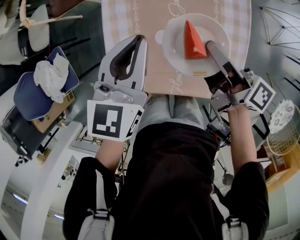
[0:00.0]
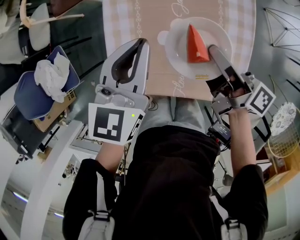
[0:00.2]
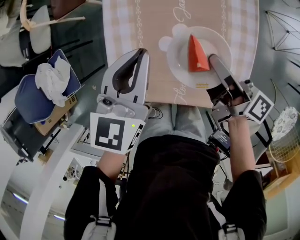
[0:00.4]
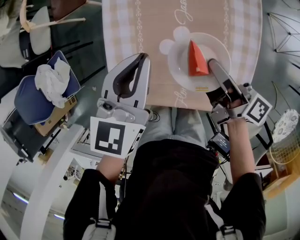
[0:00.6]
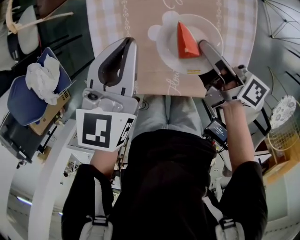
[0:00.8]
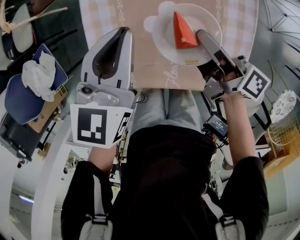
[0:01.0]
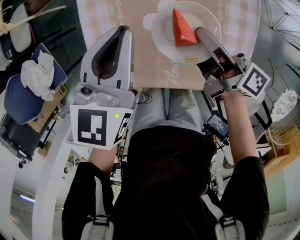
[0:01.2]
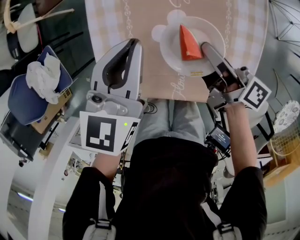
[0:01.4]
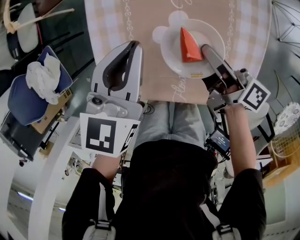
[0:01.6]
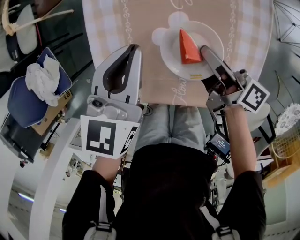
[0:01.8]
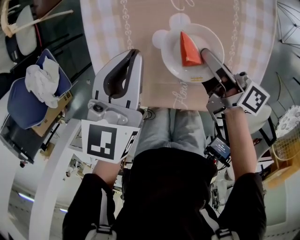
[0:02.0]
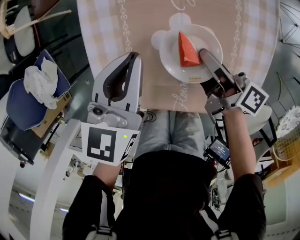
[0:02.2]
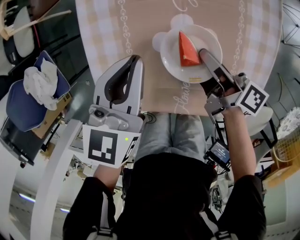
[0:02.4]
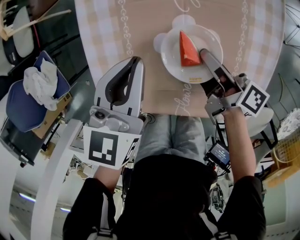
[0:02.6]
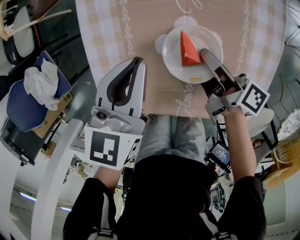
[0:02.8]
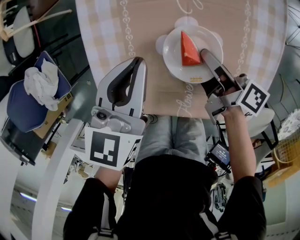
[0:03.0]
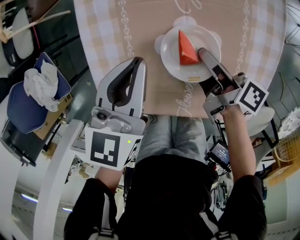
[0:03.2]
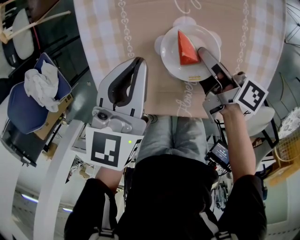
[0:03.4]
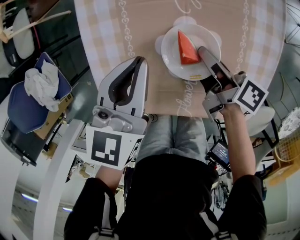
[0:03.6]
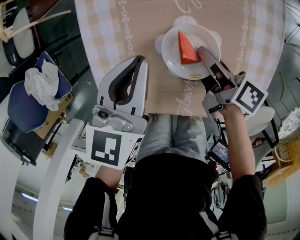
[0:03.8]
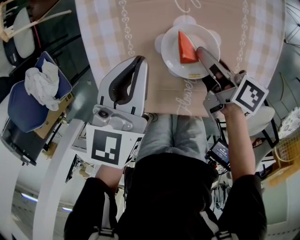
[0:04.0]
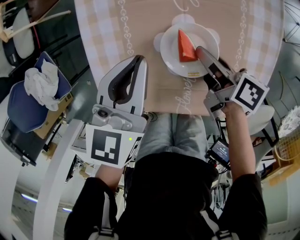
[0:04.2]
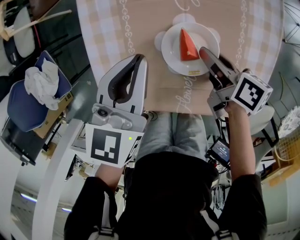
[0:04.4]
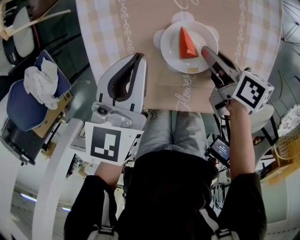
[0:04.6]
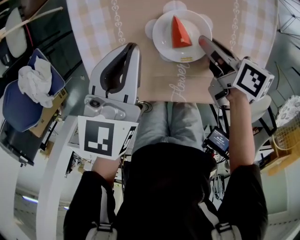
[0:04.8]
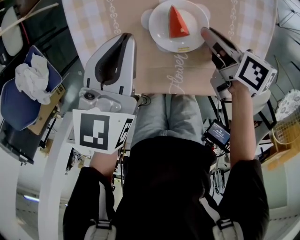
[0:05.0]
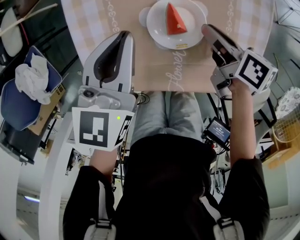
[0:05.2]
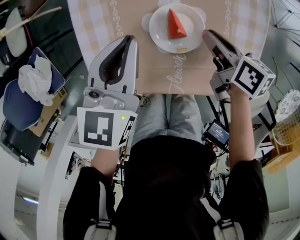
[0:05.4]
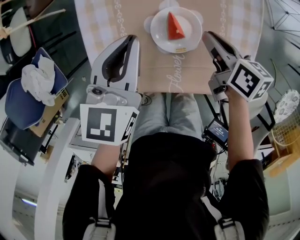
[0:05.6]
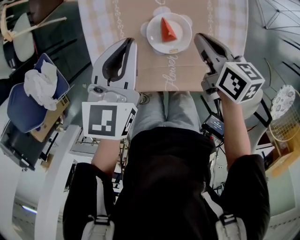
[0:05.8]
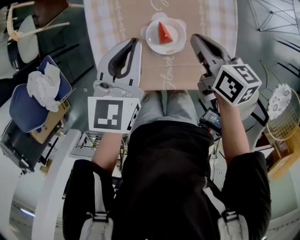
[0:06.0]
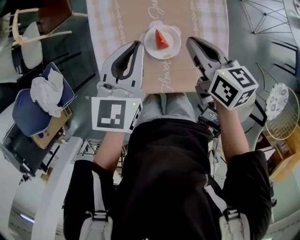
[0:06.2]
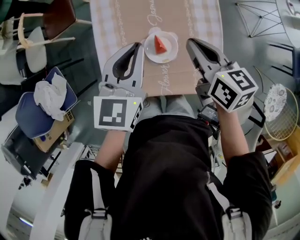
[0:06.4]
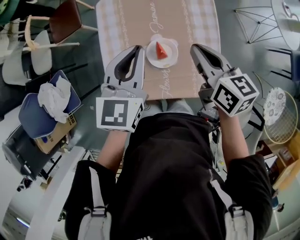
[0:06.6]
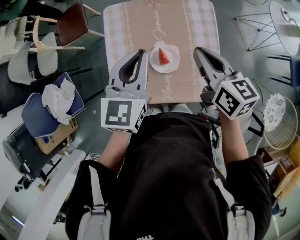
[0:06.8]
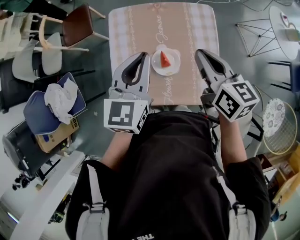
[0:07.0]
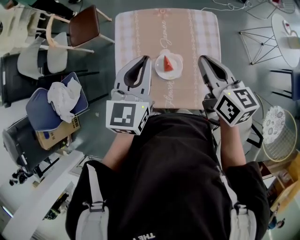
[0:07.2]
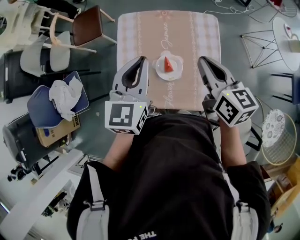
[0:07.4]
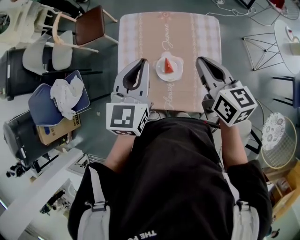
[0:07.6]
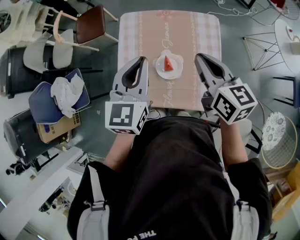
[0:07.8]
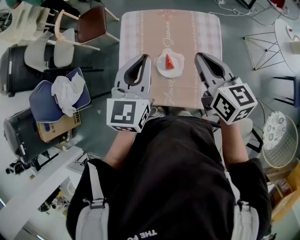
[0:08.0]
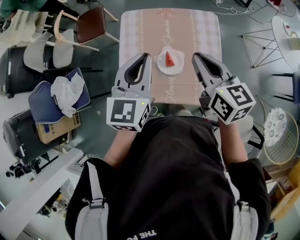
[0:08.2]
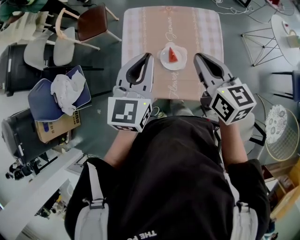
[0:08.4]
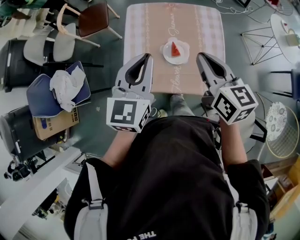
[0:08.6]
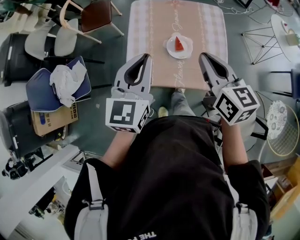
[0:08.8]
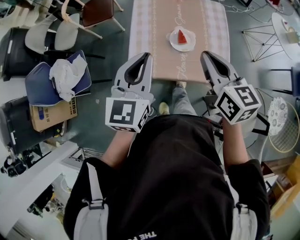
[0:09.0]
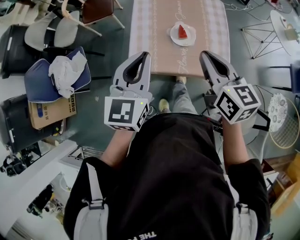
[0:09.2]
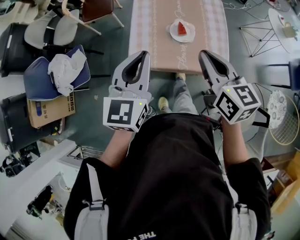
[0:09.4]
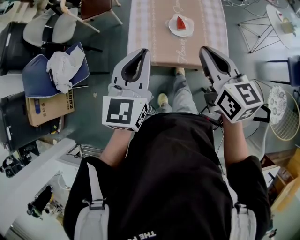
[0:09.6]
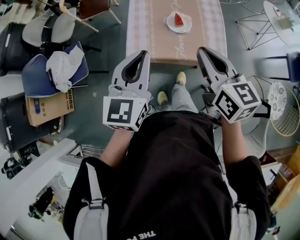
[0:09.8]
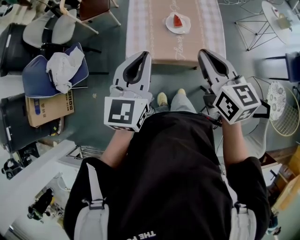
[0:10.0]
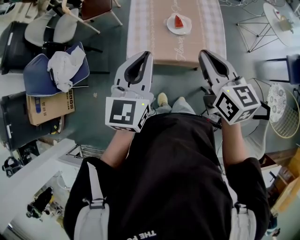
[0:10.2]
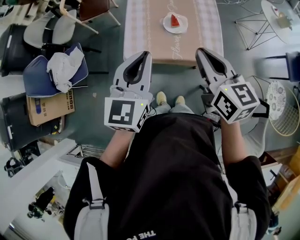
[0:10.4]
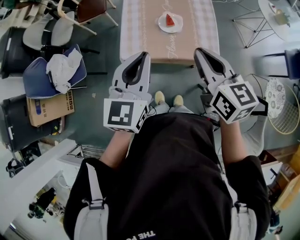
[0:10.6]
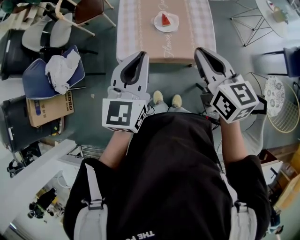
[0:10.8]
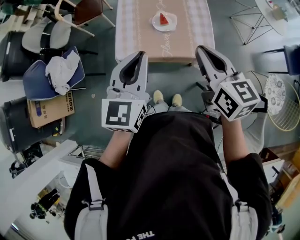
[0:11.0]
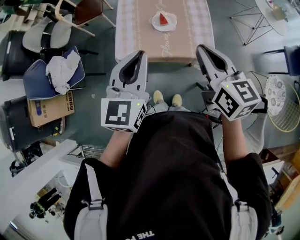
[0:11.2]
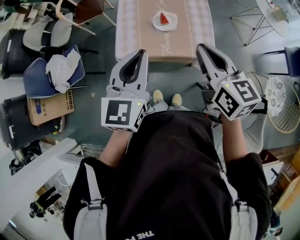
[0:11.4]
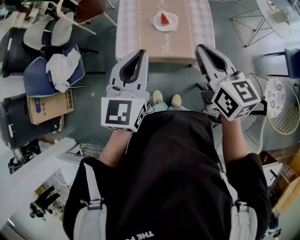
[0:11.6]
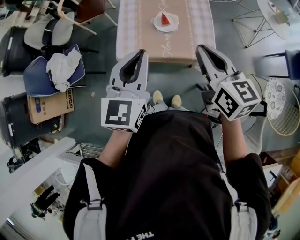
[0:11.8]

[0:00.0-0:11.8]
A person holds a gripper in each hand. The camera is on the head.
0:00.0 to 0:01.4: Both grippers travel together downward, about 10 cm.
0:01.4 to 0:03.0: Both grippers move downward, approximately 10 cm.
0:03.0 to 0:04.4: The right gripper turns by approximately 20 degrees.
0:04.4 to 0:06.0: Both grippers travel together upward, approximately 15 cm. The right gripper changes its angle by some 20 degrees, and closes.
0:06.0 to 0:07.4: The grippers both shift upward by about 15 cm.
0:07.4 to 0:08.8: Both grippers travel together backward and to the left, approximately 15 cm.
0:08.8 to 0:10.4: The grippers both shift backward by some 15 cm.
0:10.4 to 0:11.8: The grippers both shift to the right by approximately 5 cm.

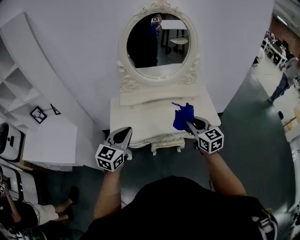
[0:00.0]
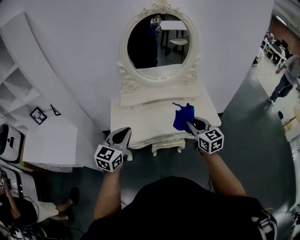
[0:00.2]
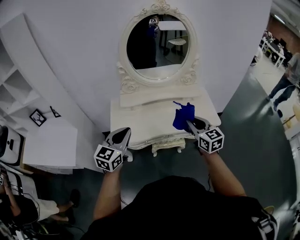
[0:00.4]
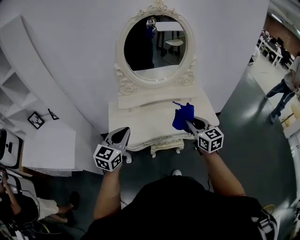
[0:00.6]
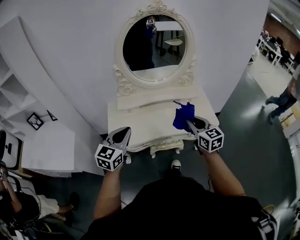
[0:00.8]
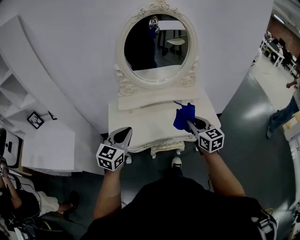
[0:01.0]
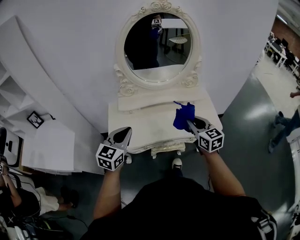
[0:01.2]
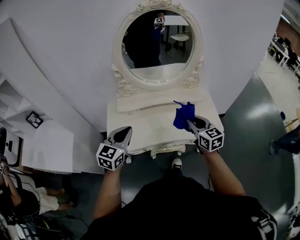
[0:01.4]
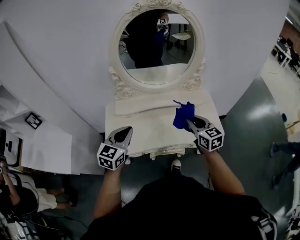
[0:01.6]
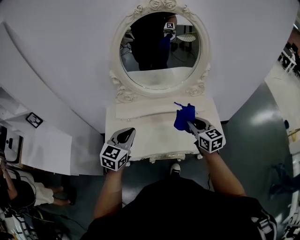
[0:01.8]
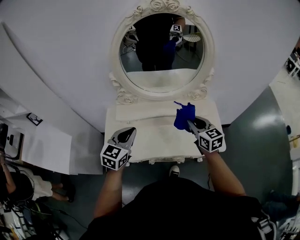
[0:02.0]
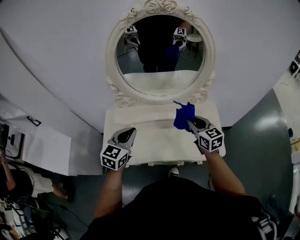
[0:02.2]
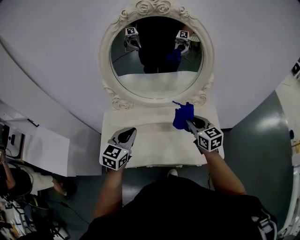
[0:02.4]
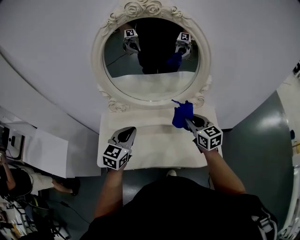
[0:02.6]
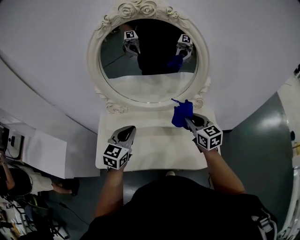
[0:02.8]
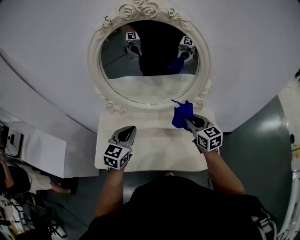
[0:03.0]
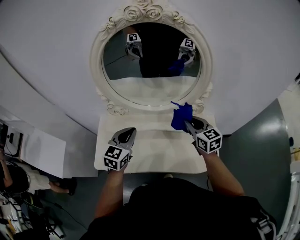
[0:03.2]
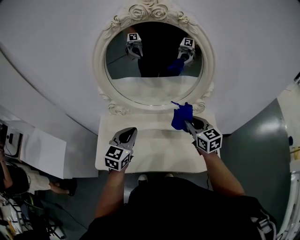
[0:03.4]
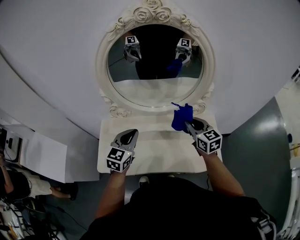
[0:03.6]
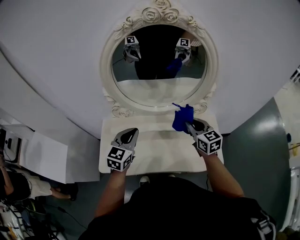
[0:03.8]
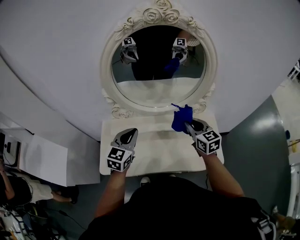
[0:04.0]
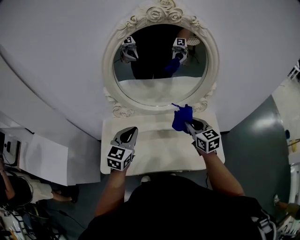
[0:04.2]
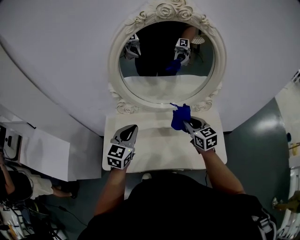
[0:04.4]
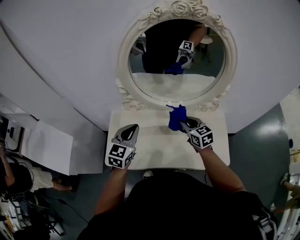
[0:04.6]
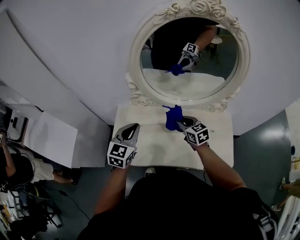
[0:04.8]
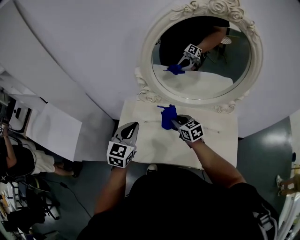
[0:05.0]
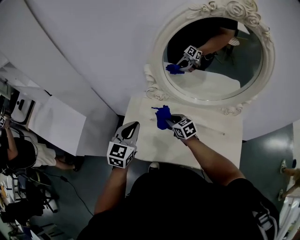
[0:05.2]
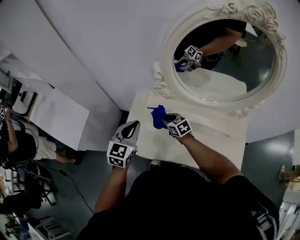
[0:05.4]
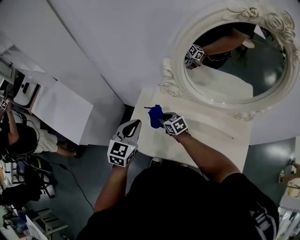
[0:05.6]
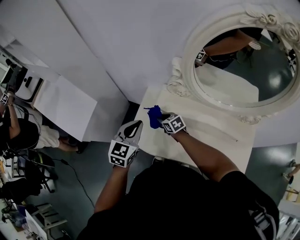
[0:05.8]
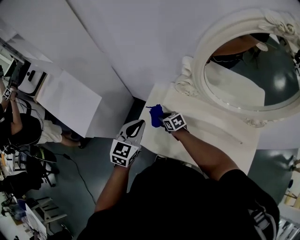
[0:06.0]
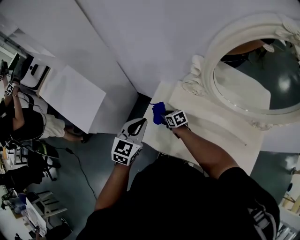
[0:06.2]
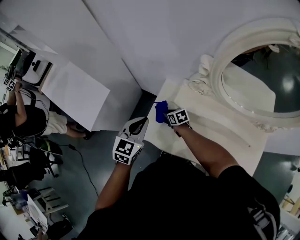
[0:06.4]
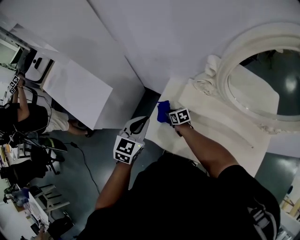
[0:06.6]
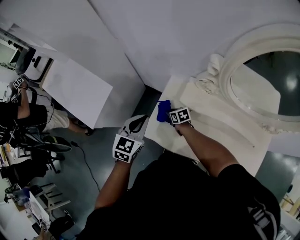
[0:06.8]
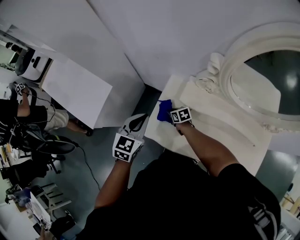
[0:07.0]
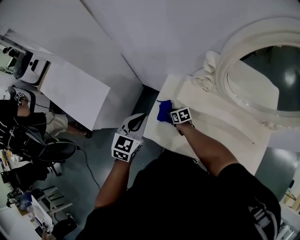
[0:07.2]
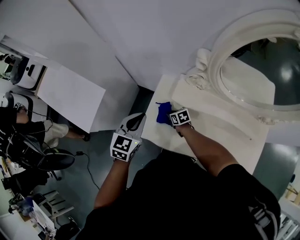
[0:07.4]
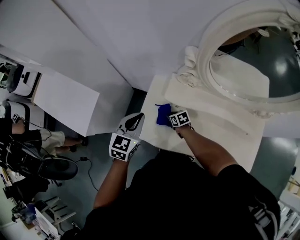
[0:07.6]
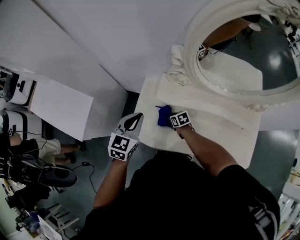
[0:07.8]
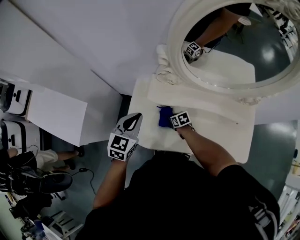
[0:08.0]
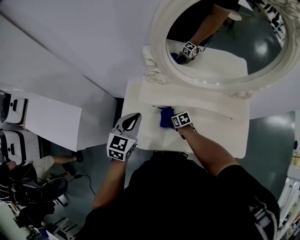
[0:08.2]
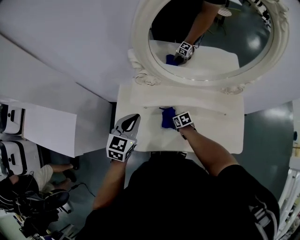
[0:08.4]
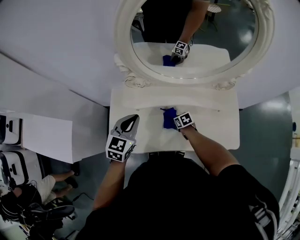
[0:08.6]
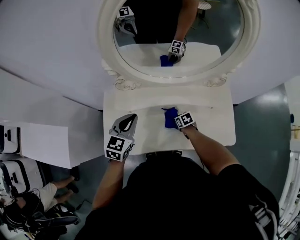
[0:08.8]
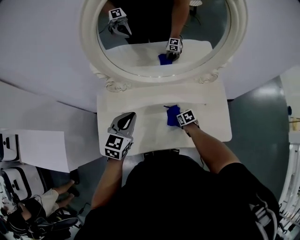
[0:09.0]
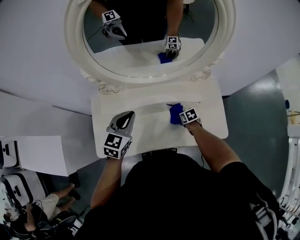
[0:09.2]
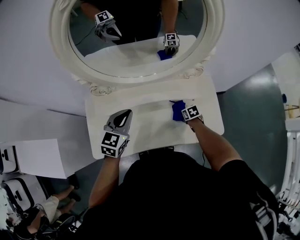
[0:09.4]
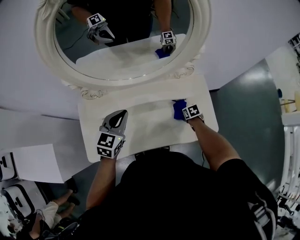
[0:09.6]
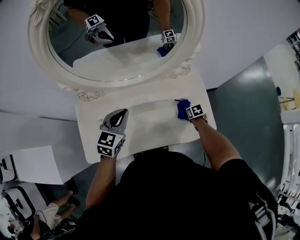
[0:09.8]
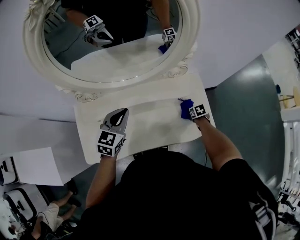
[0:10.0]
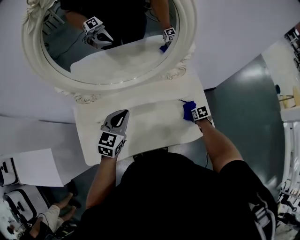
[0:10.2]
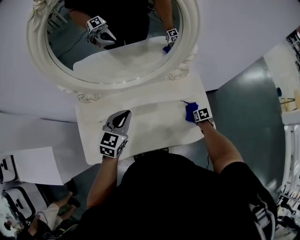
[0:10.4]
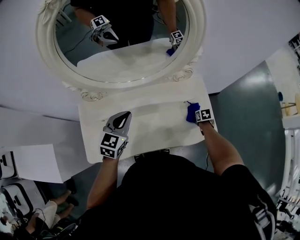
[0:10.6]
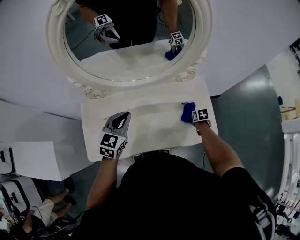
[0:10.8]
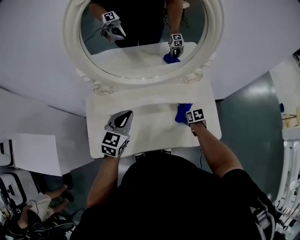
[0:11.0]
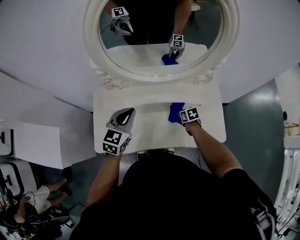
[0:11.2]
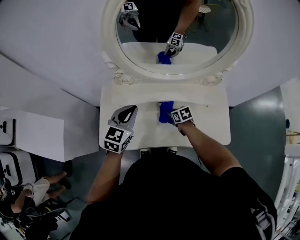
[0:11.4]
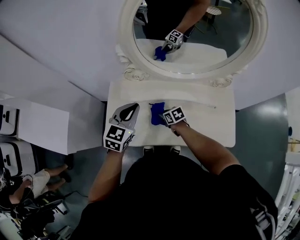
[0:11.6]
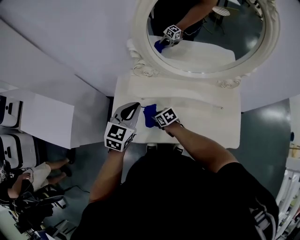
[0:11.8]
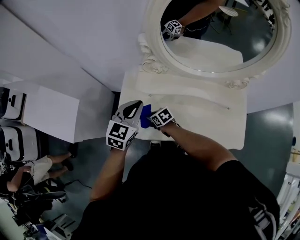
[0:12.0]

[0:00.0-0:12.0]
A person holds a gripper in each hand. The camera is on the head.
0:00.0 to 0:01.6: The grippers both shift forward by approximately 15 cm.
0:01.6 to 0:03.0: The left gripper moves forward and to the right, approximately 20 cm; the right gripper travels forward by about 20 cm.
0:03.0 to 0:04.4: The two grippers go some 10 cm to the left.
0:04.4 to 0:06.0: The right gripper changes place by approximately 50 cm, and changes its angle by about 50 degrees; the left gripper changes place by some 25 cm, and rotates roughly 20 degrees.
0:06.0 to 0:07.6: The right gripper heads downward, covering some 10 cm.
0:07.6 to 0:09.0: The right gripper changes place by about 40 cm, and turns by about 30 degrees; the left gripper shifts by roughly 25 cm, and turns by approximately 20 degrees.
0:09.0 to 0:10.4: The right gripper shifts roughly 30 cm to the right, and rotates approximately 20 degrees. Meanwhile the left gripper heads to the right, covering roughly 10 cm.
0:10.4 to 0:12.0: The right gripper shifts by some 60 cm, and changes its angle by roughly 50 degrees; the left gripper changes place by approximately 25 cm.
